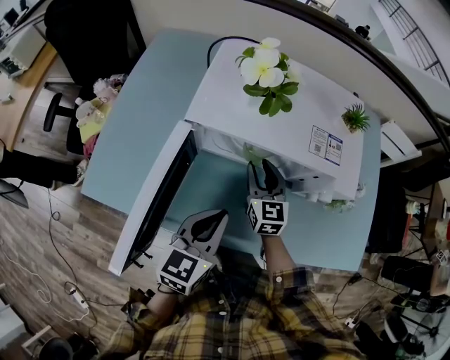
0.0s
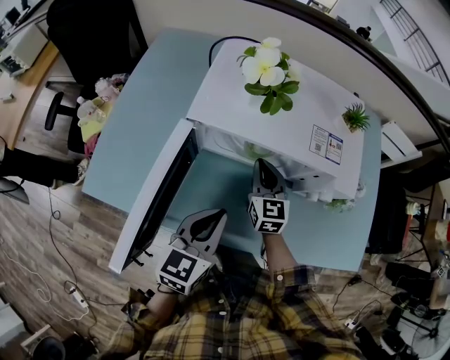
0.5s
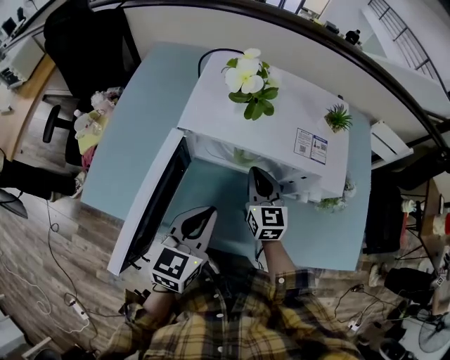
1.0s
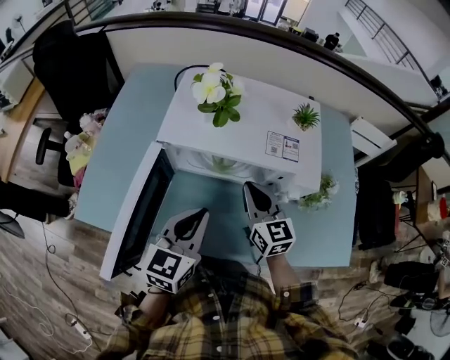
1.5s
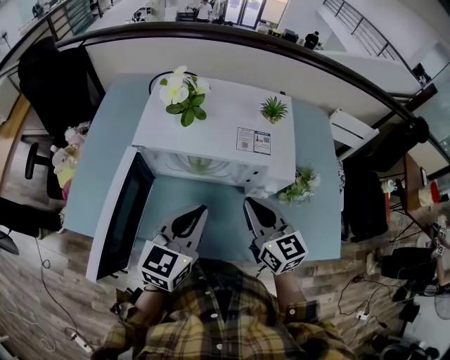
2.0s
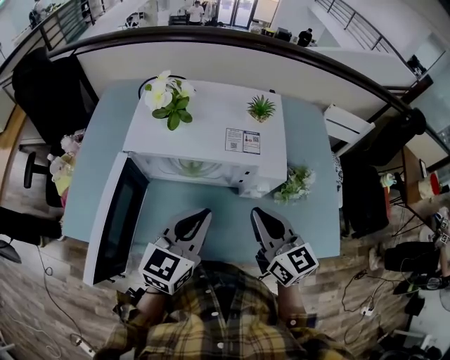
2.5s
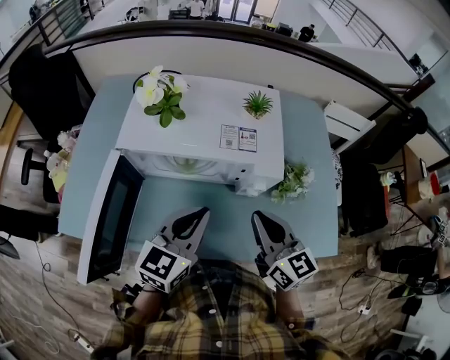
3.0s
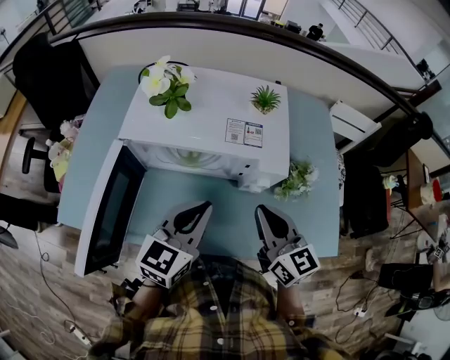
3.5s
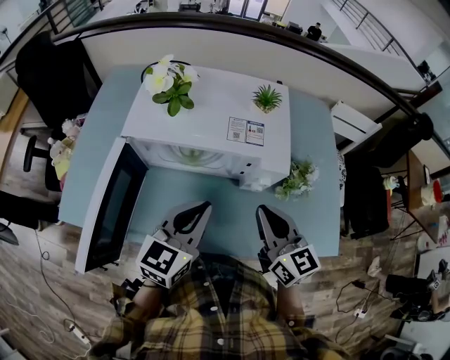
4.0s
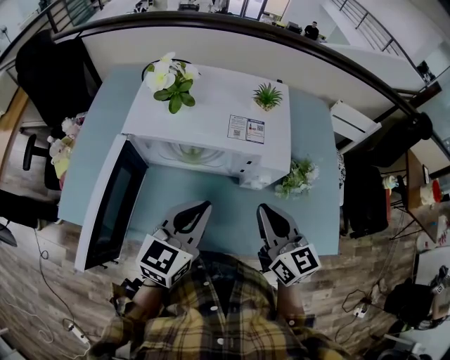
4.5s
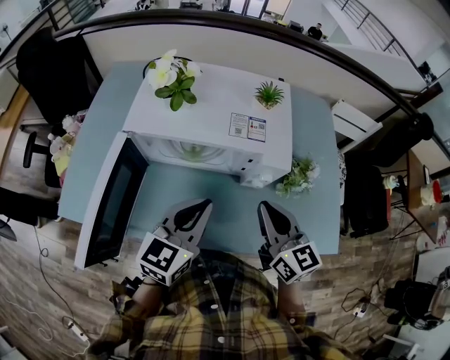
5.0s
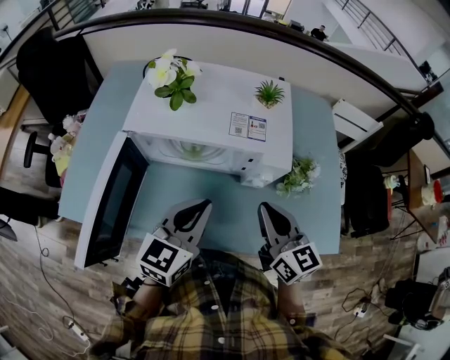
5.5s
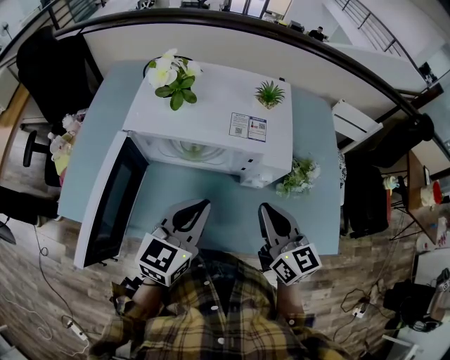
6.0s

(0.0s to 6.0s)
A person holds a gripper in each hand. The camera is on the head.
0.0s - 2.0s: The left gripper goes roughly 10 cm to the right and upward. The right gripper shifts some 20 cm upward, to the right and backward, and closes.
2.0s - 4.0s: The right gripper shifts about 5 cm to the right.
4.0s - 6.0s: The two grippers keep their place.

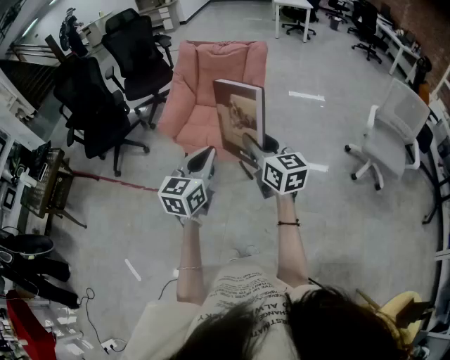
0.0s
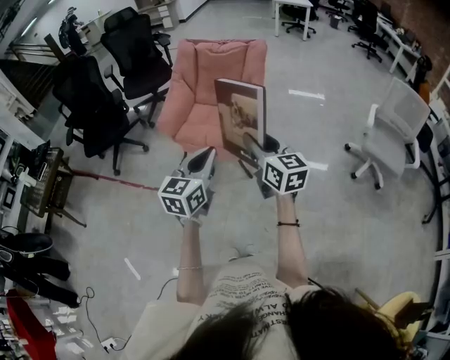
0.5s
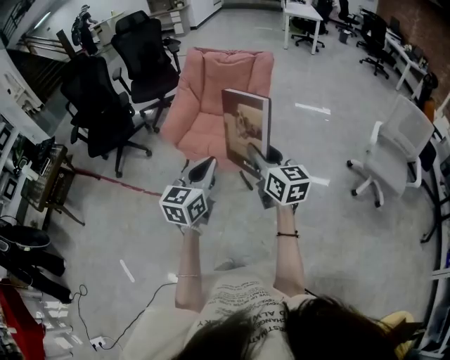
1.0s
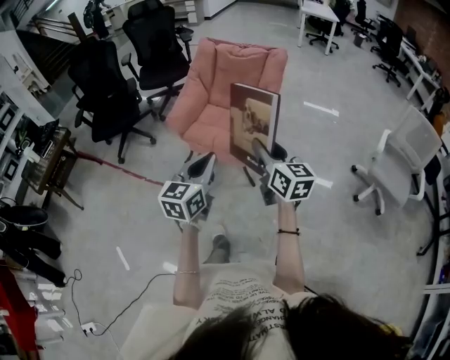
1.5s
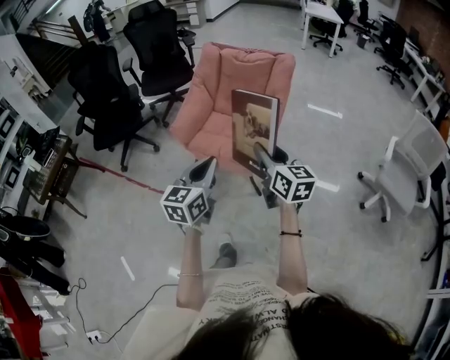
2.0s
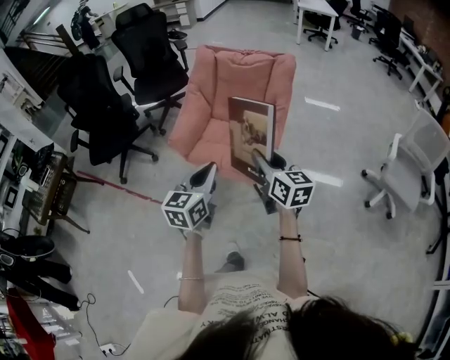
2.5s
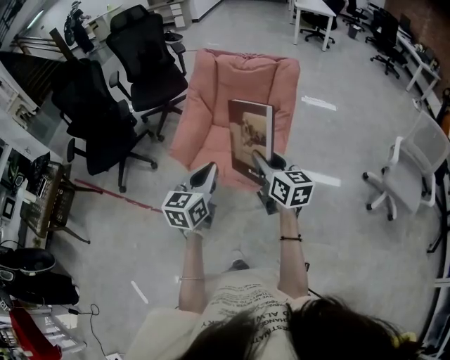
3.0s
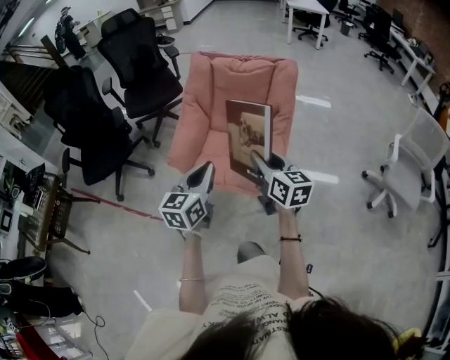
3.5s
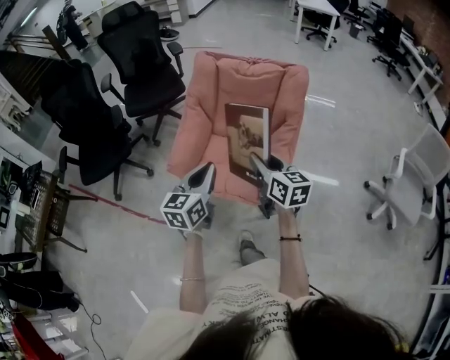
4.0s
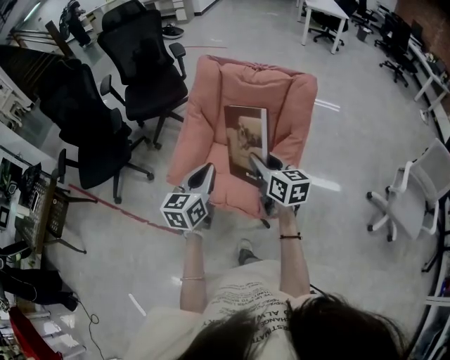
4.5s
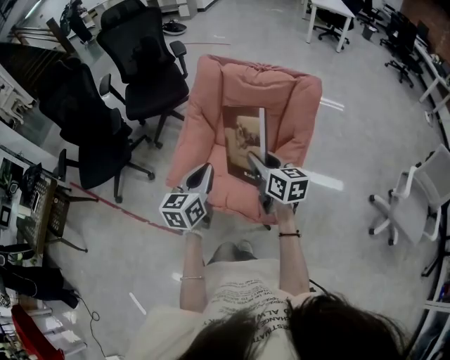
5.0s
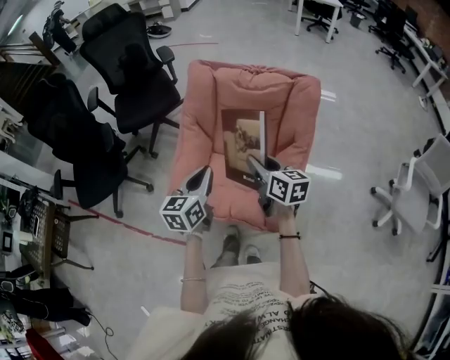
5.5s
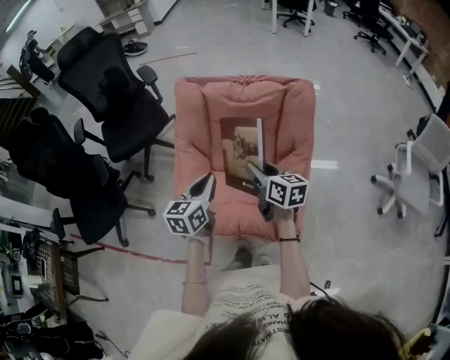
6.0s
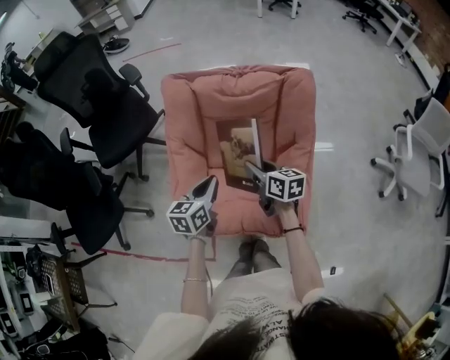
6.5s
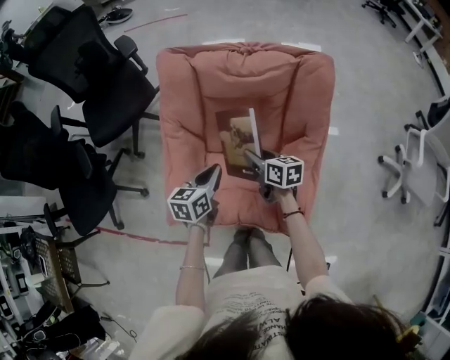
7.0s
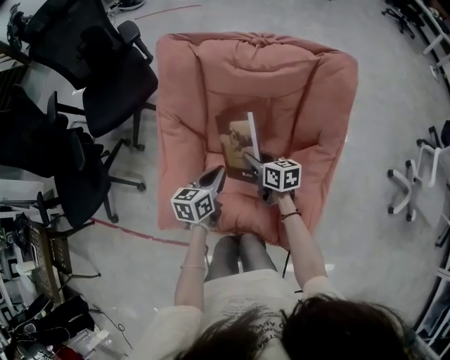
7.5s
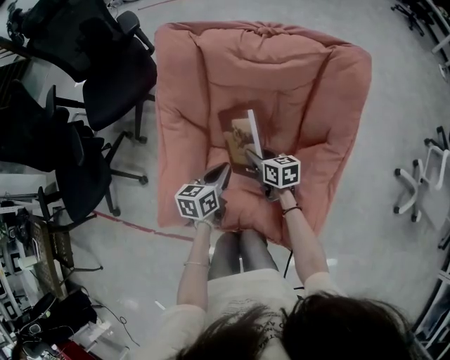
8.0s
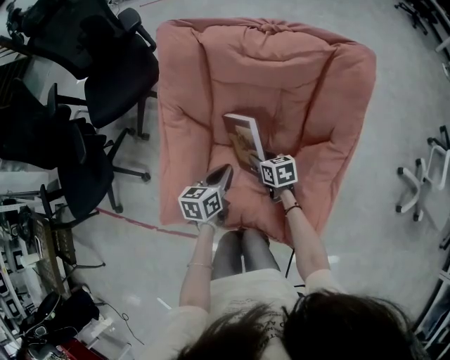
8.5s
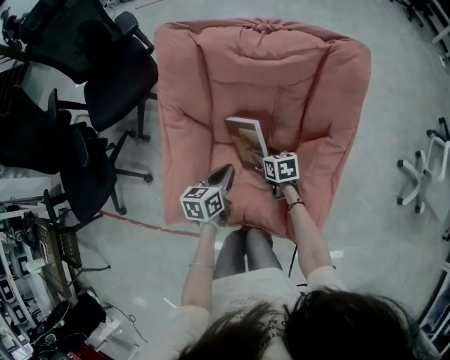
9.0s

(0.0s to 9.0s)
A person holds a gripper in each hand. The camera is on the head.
0.0s - 2.0s: The two grippers go about 10 cm forward.
2.0s - 4.5s: Both grippers move forward, approximately 35 cm.
4.5s - 7.0s: Both grippers move forward and downward, approximately 35 cm. The left gripper swivels some 30 degrees, while the right gripper changes its angle by roughly 20 degrees.
7.0s - 9.0s: The left gripper is displaced downward by about 10 cm. The right gripper travels downward by about 20 cm, rotates some 20 degrees, and opens its fingers.

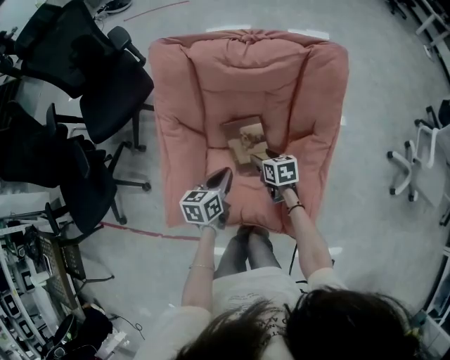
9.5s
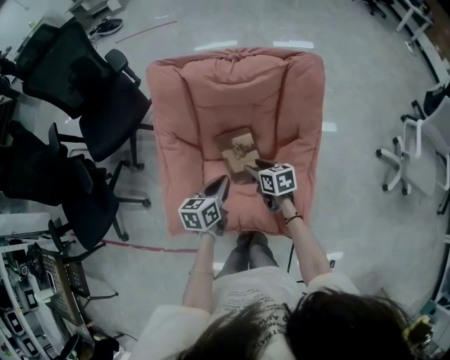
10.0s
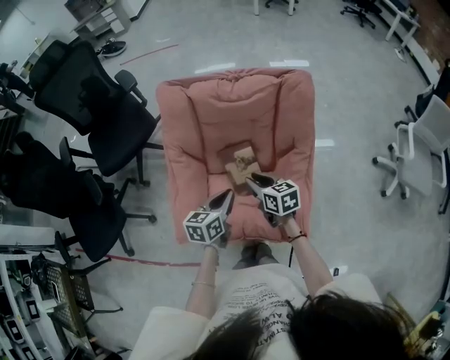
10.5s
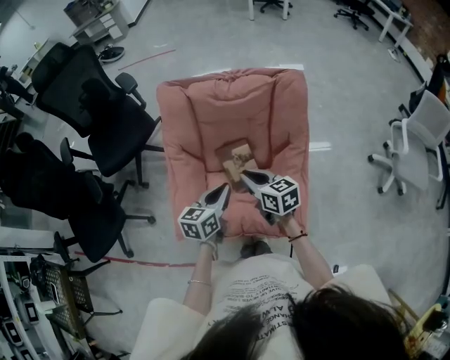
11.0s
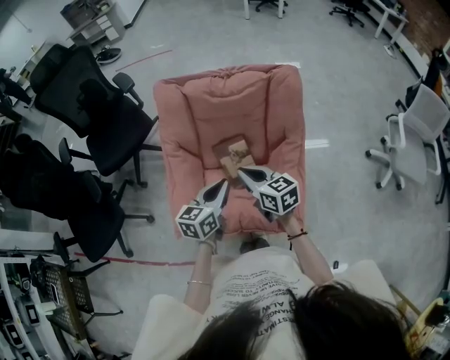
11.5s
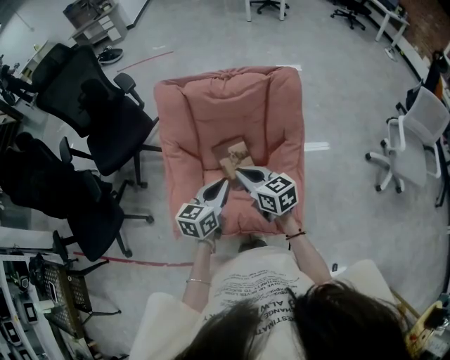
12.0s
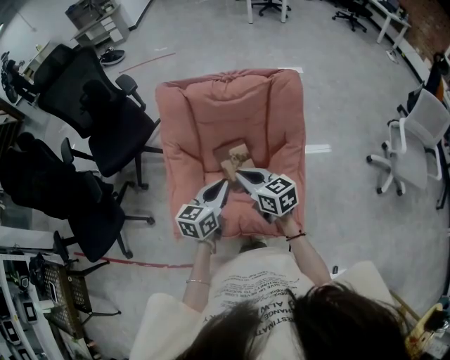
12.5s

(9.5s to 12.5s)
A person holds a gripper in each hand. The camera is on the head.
9.5s - 11.0s: The right gripper moves upward and backward, some 25 cm, rotates roughly 20 degrees, and closes its fingers. Meanwhile the left gripper heads upward and backward, covering approximately 15 cm.
11.0s - 12.5s: There are only small adjustments of the grippers.

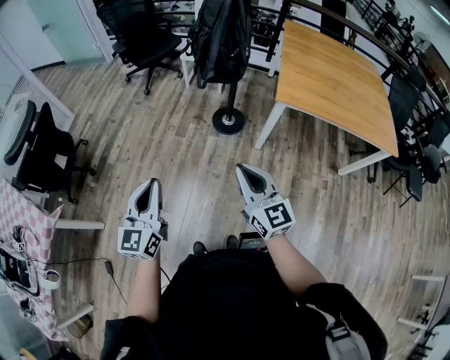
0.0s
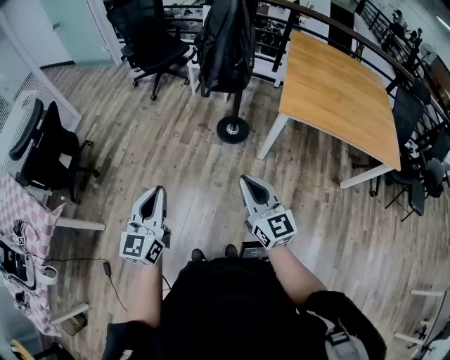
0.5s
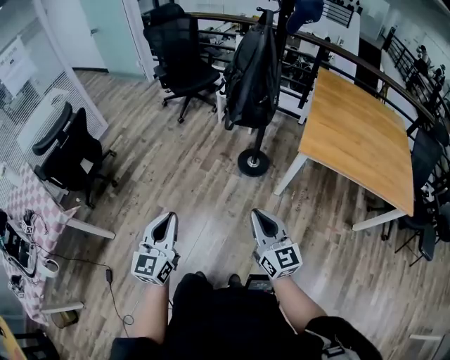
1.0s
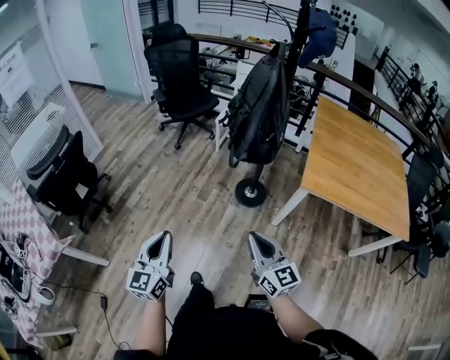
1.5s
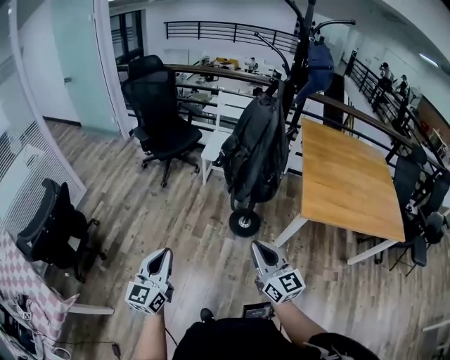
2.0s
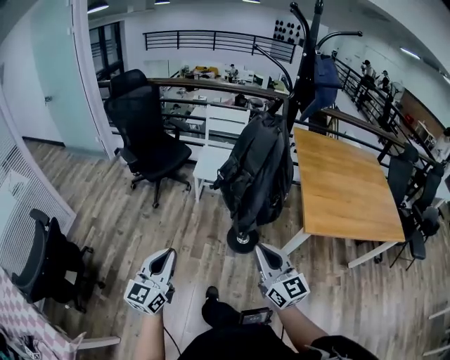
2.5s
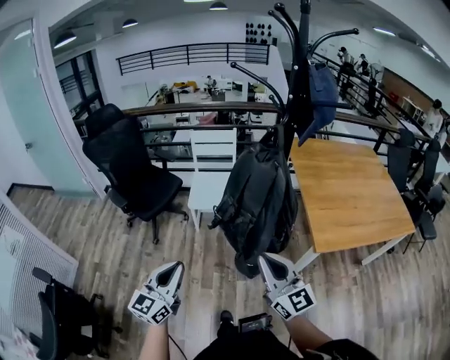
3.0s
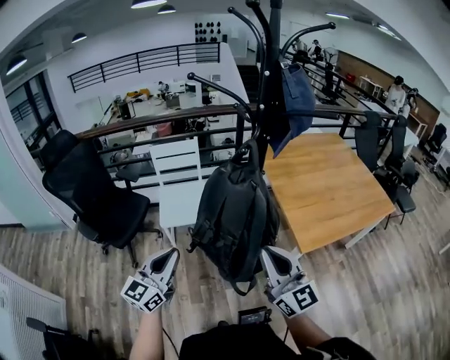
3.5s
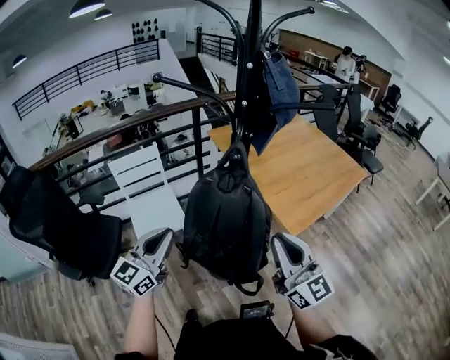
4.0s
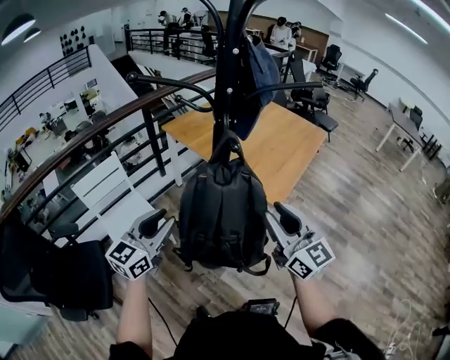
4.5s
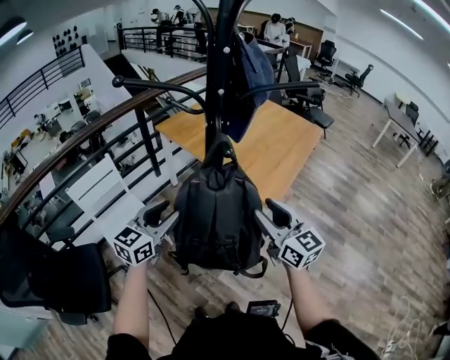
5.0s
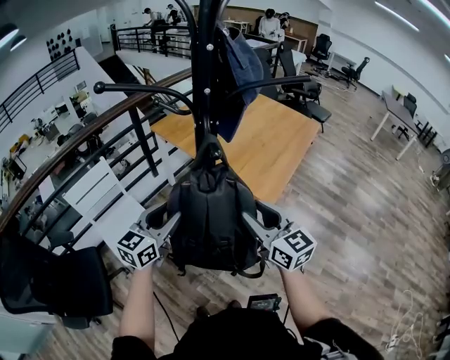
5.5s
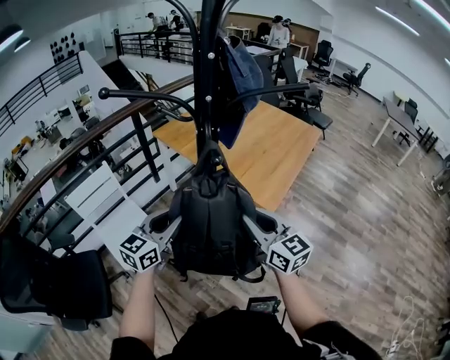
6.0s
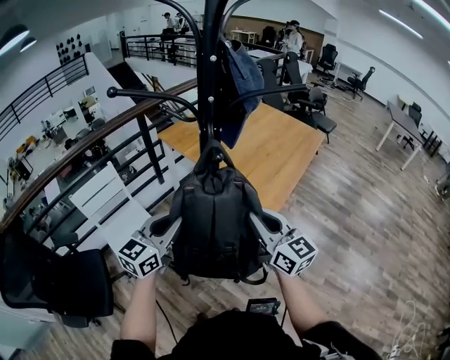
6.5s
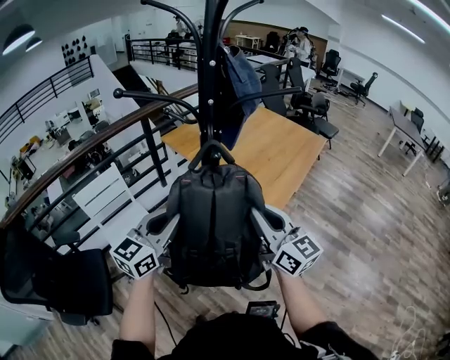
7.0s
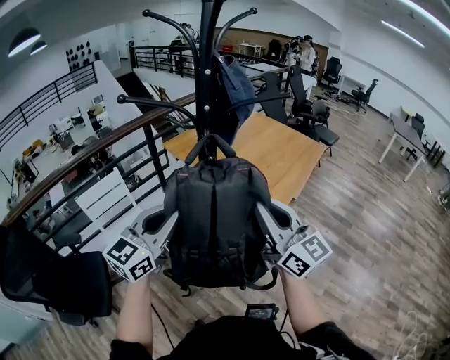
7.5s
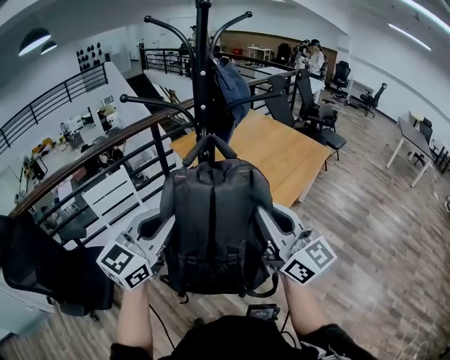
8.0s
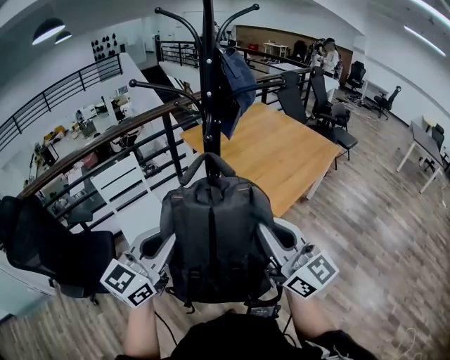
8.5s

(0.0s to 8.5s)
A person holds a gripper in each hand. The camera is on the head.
0.0s - 2.0s: The right gripper shifts about 20 cm forward. Meanwhile the left gripper is displaced forward and to the left by approximately 20 cm.
2.0s - 4.0s: The right gripper ends up about 30 cm from where it was, and changes its angle by approximately 50 degrees; the left gripper changes place by approximately 50 cm, and turns by roughly 60 degrees.
4.0s - 6.5s: The left gripper travels forward by approximately 10 cm, turns by some 30 degrees, and opens, then closes once more; the right gripper moves forward, approximately 5 cm, swivels roughly 20 degrees, and opens, then closes again.
6.5s - 8.5s: The grippers both shift backward and upward by roughly 15 cm.
